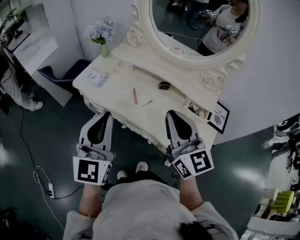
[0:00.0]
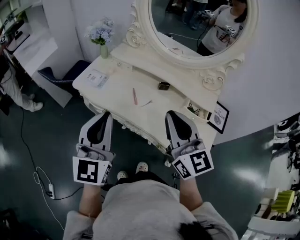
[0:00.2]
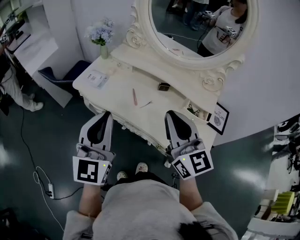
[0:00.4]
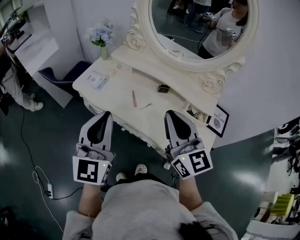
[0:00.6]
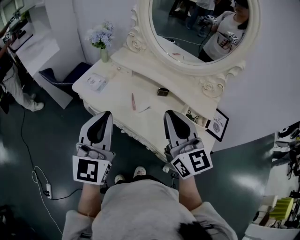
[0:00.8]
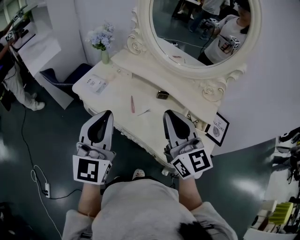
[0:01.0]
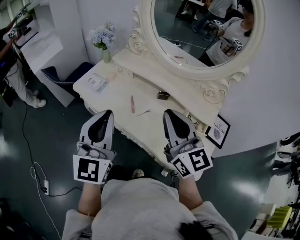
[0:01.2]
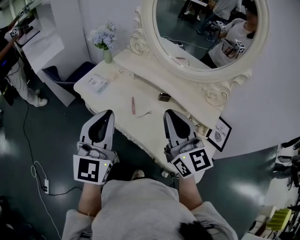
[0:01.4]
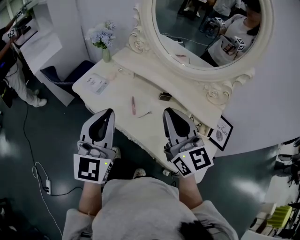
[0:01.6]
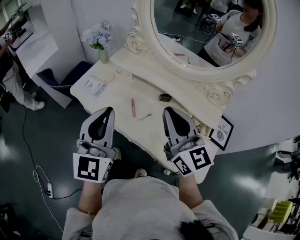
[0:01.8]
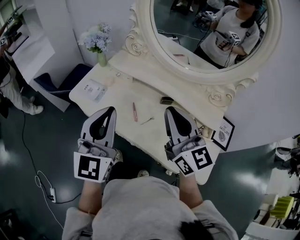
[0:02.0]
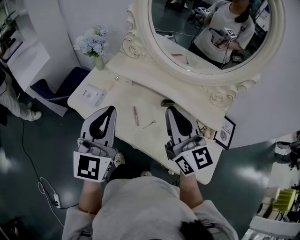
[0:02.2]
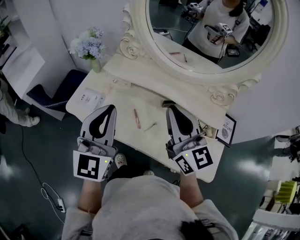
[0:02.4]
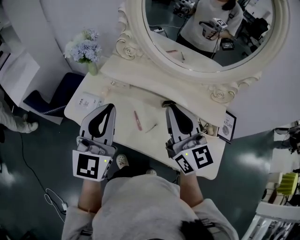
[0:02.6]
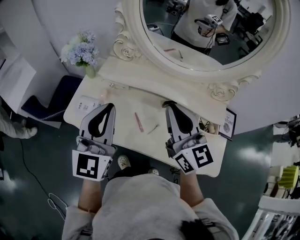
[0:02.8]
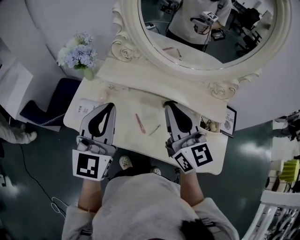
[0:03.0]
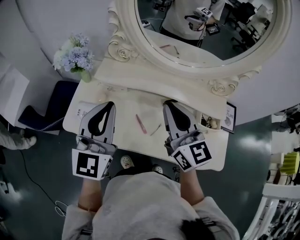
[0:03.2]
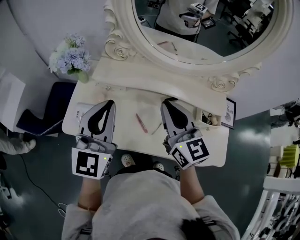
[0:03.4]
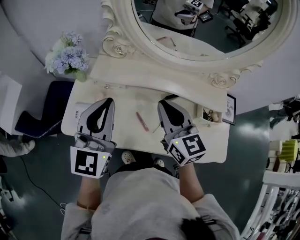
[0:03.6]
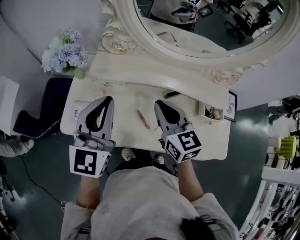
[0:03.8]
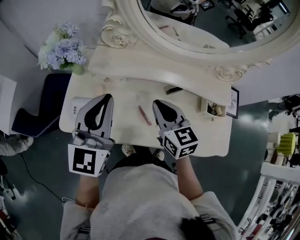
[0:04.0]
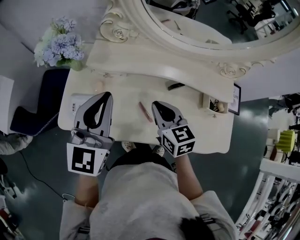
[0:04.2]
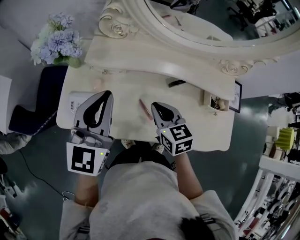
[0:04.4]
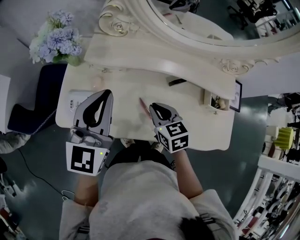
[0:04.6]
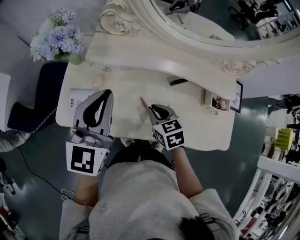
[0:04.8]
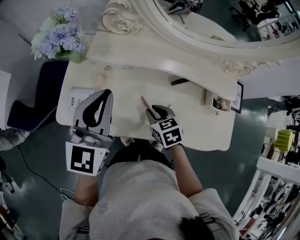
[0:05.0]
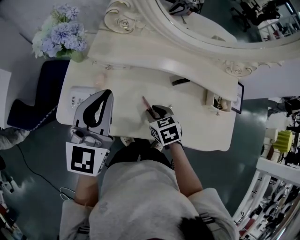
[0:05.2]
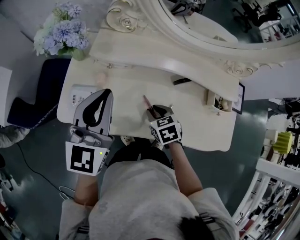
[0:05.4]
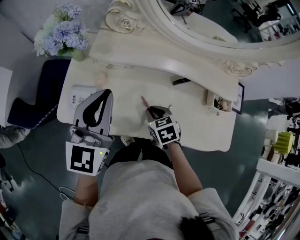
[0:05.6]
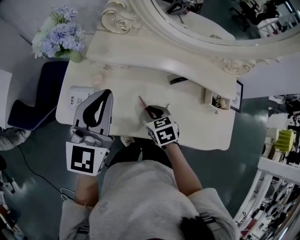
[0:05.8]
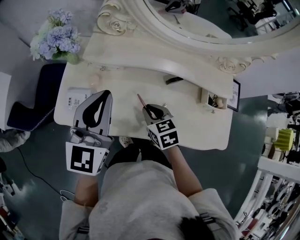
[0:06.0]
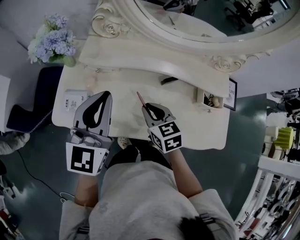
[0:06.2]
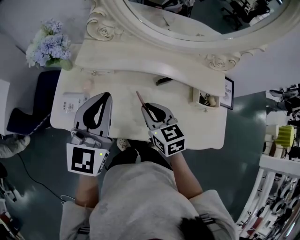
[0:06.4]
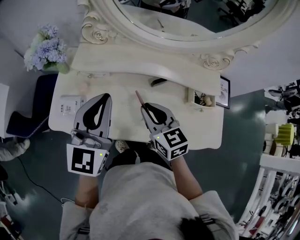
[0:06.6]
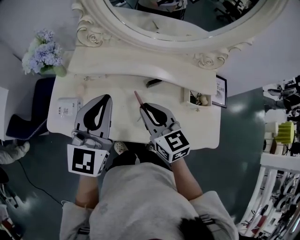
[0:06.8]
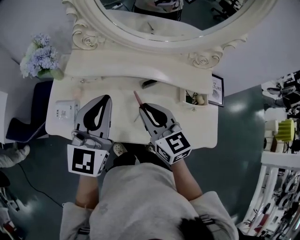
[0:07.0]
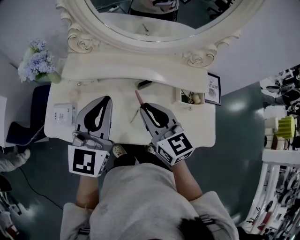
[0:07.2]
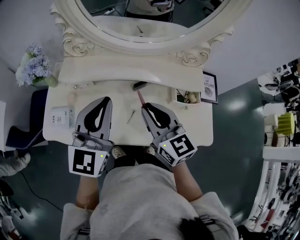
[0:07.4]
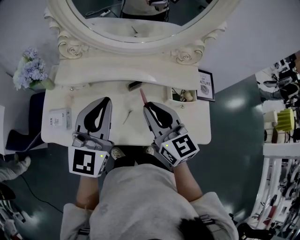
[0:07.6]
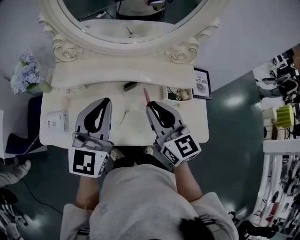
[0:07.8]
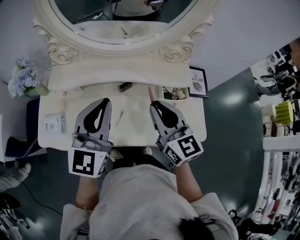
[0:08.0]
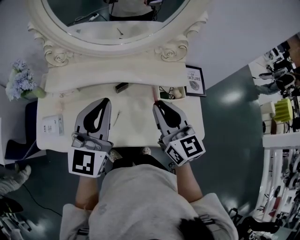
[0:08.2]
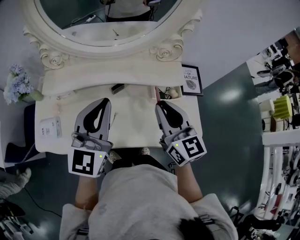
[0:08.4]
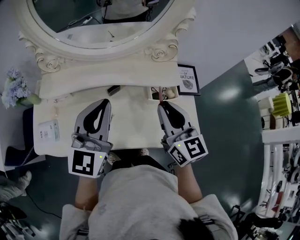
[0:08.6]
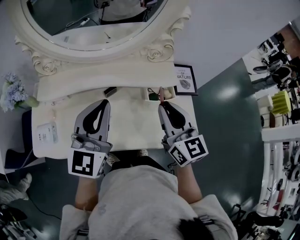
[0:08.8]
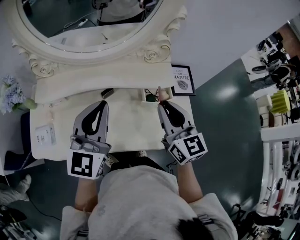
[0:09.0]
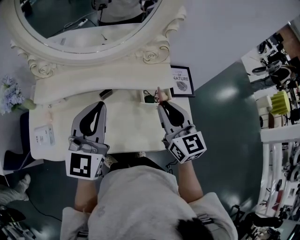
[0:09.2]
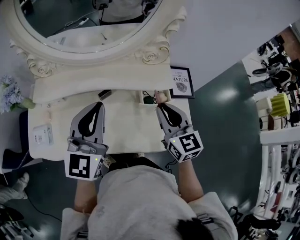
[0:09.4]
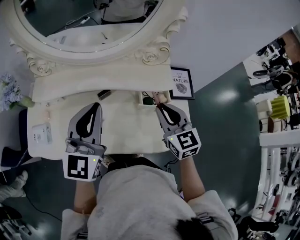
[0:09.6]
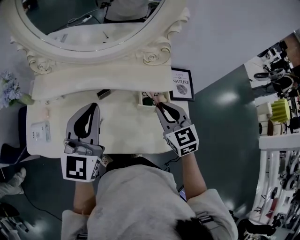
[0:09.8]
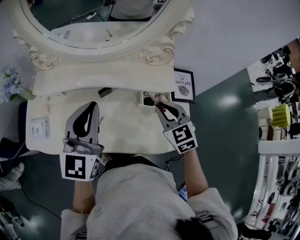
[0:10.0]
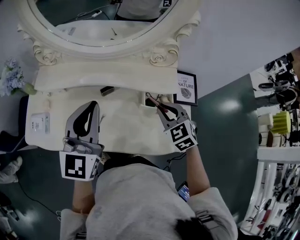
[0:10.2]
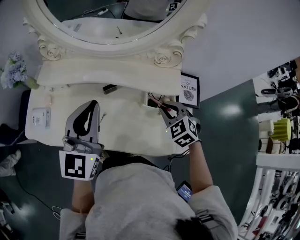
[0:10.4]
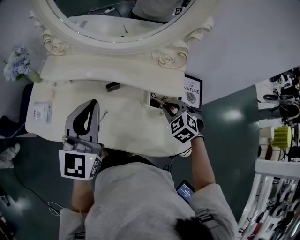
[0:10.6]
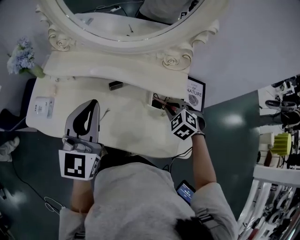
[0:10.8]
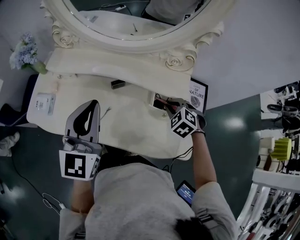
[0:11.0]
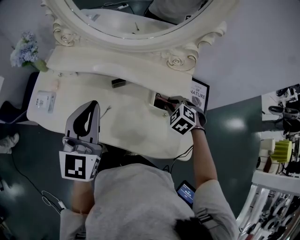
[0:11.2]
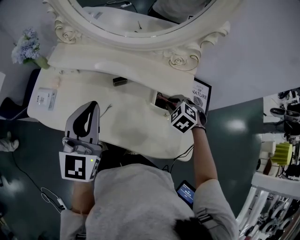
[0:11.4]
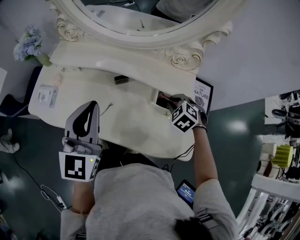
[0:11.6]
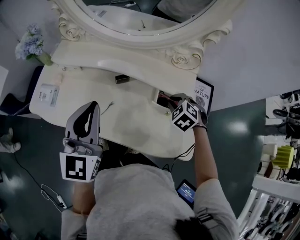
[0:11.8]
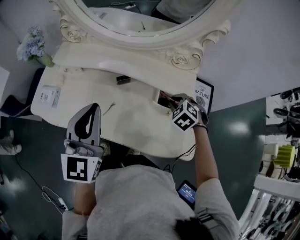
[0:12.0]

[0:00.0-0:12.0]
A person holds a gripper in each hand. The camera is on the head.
0:00.0 to 0:01.6: The two grippers go some 5 cm forward.
0:01.6 to 0:03.0: The left gripper travels forward by some 15 cm, and turns by some 20 degrees. Meanwhile the right gripper goes roughly 15 cm forward and to the left.
0:03.0 to 0:04.4: The right gripper shifts about 20 cm downward, and tilts its fingers roughly 40 degrees downward, while the left gripper goes about 10 cm downward and forward.
0:04.4 to 0:06.0: The right gripper is displaced downward by approximately 5 cm.
0:06.0 to 0:07.6: The left gripper shifts approximately 15 cm to the right, while the right gripper shifts roughly 25 cm upward and to the right, and tilts its fingers some 40 degrees upward.
0:07.6 to 0:09.0: The left gripper heads to the right, covering roughly 10 cm. Meanwhile the right gripper moves to the right, approximately 15 cm.
0:09.0 to 0:10.4: The right gripper heads downward and forward, covering roughly 15 cm, and tips its fingers downward by about 40 degrees.
0:10.4 to 0:12.0: The right gripper is displaced downward by approximately 5 cm, while the left gripper changes place by some 5 cm.

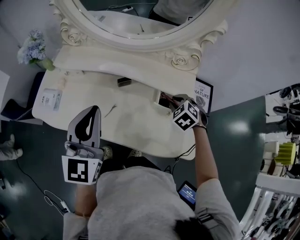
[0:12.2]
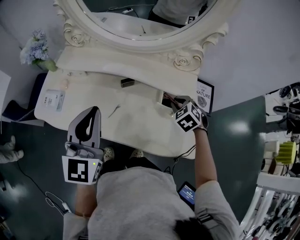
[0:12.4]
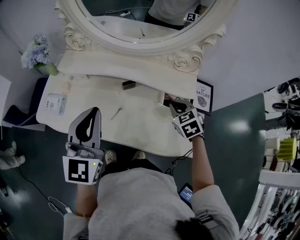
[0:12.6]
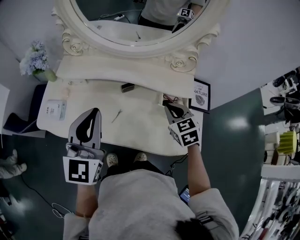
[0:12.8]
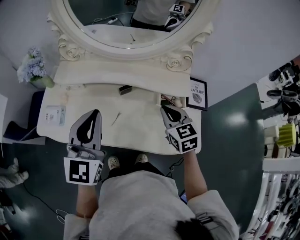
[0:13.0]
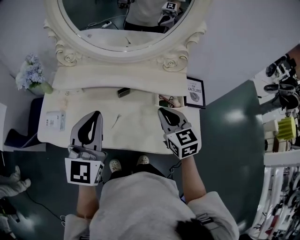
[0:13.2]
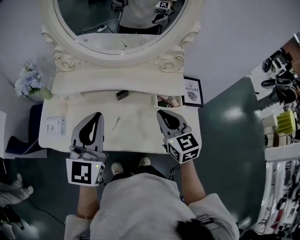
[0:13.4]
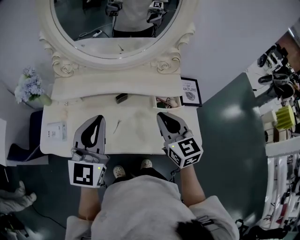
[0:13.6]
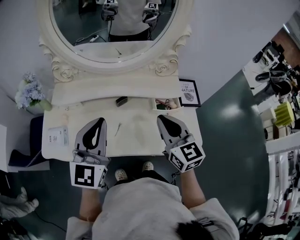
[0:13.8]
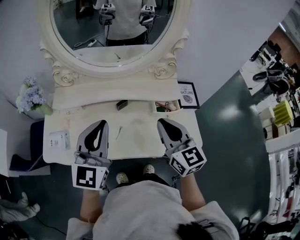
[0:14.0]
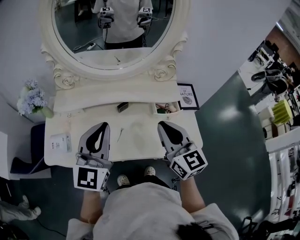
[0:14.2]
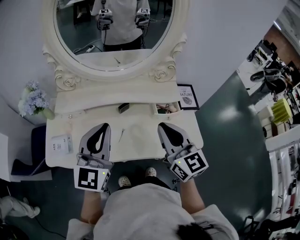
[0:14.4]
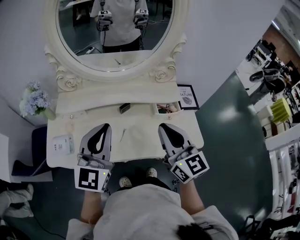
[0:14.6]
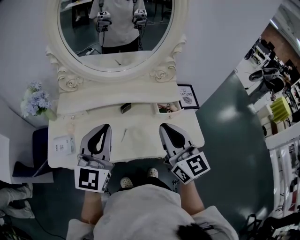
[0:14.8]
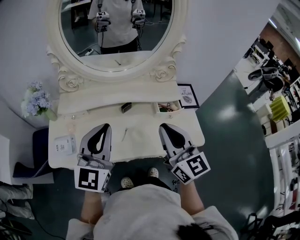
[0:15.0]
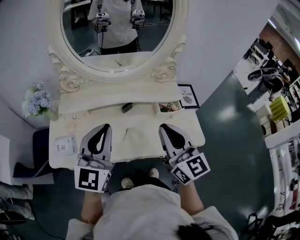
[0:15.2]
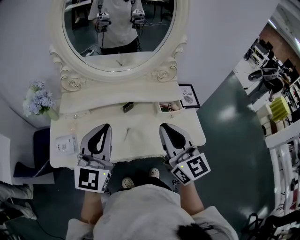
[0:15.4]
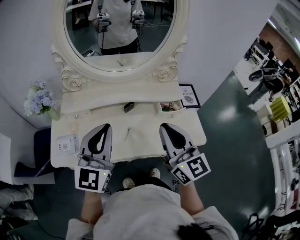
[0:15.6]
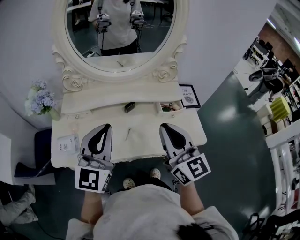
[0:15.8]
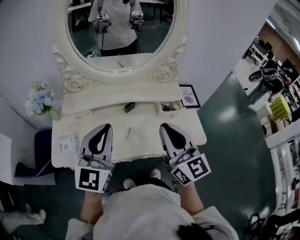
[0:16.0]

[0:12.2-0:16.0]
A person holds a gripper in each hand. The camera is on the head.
0:12.2 to 0:13.4: The right gripper travels upward, to the left and backward by roughly 20 cm, and tilts its fingers some 40 degrees upward.
0:13.4 to 0:14.8: The right gripper is displaced upward and backward by about 15 cm, and swivels some 20 degrees.
0:14.8 to 0:16.0: The grippers make only small movements.

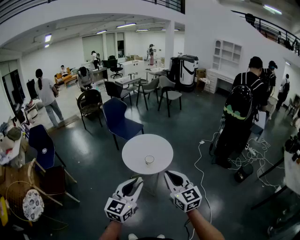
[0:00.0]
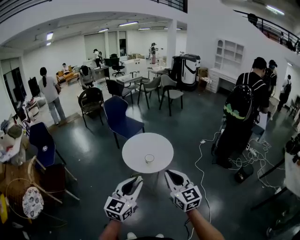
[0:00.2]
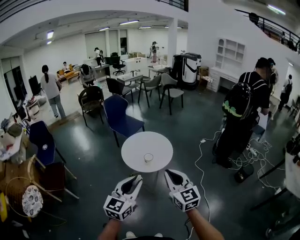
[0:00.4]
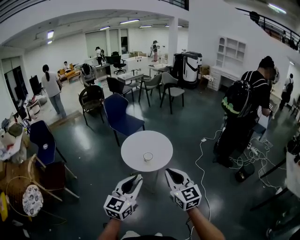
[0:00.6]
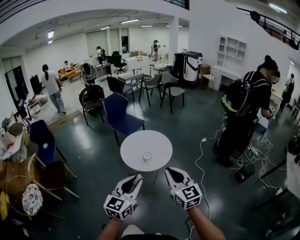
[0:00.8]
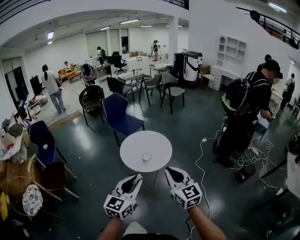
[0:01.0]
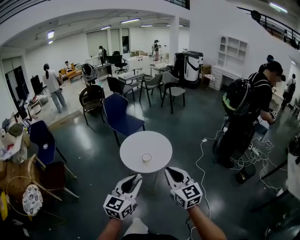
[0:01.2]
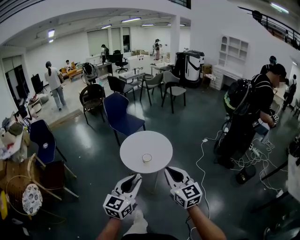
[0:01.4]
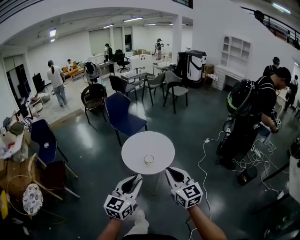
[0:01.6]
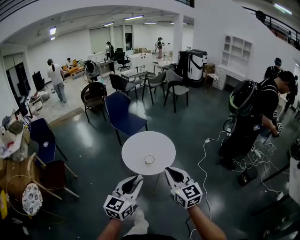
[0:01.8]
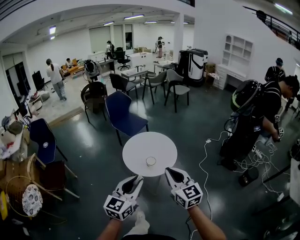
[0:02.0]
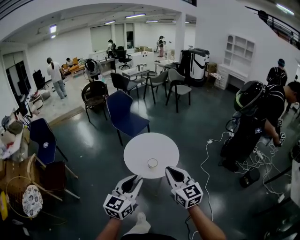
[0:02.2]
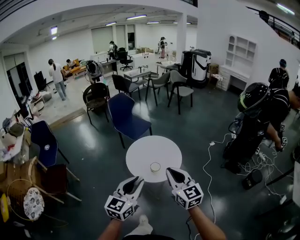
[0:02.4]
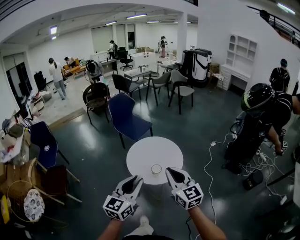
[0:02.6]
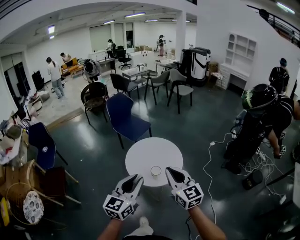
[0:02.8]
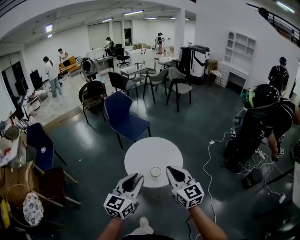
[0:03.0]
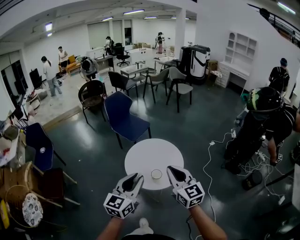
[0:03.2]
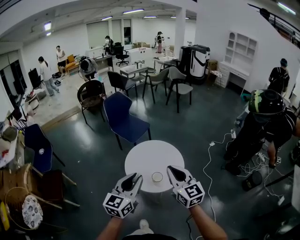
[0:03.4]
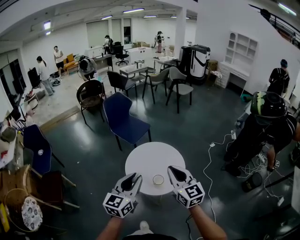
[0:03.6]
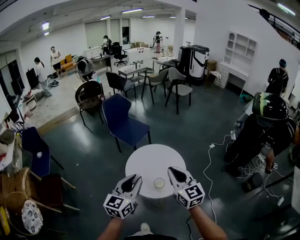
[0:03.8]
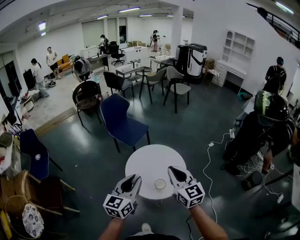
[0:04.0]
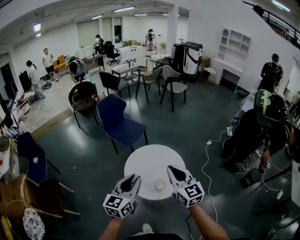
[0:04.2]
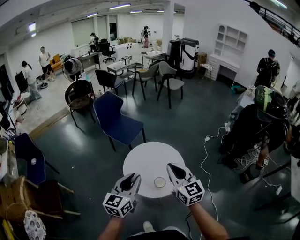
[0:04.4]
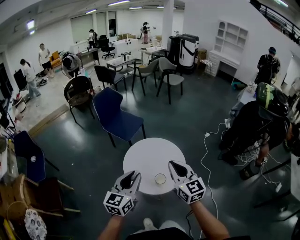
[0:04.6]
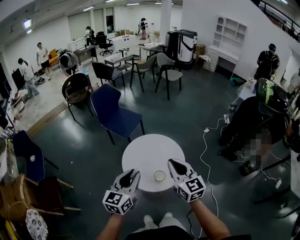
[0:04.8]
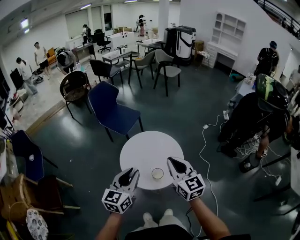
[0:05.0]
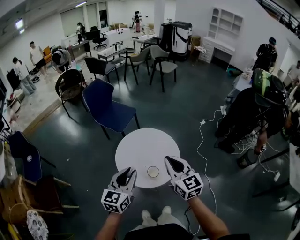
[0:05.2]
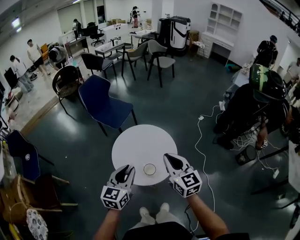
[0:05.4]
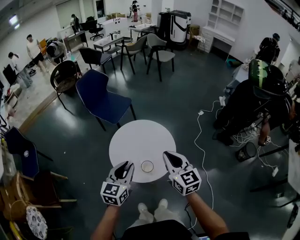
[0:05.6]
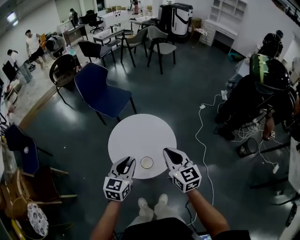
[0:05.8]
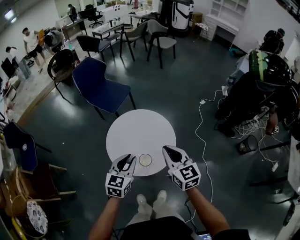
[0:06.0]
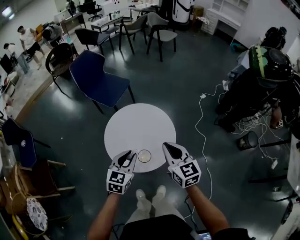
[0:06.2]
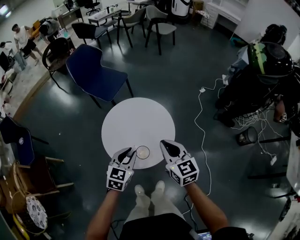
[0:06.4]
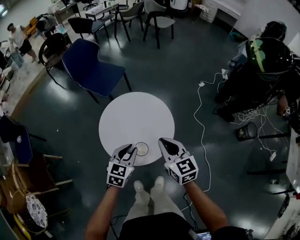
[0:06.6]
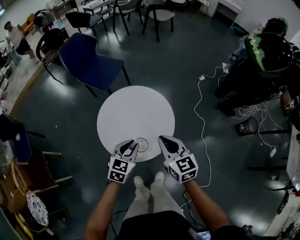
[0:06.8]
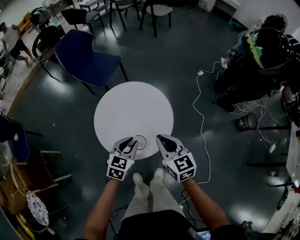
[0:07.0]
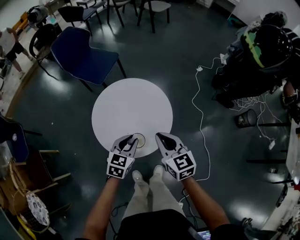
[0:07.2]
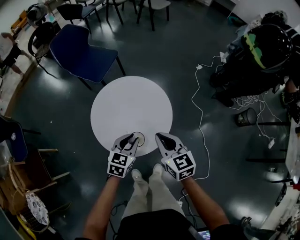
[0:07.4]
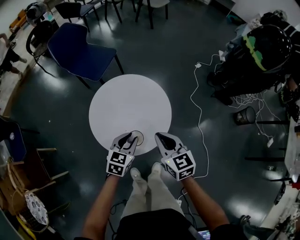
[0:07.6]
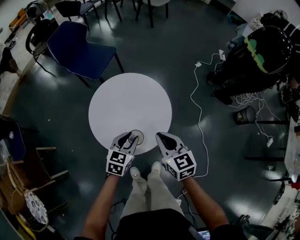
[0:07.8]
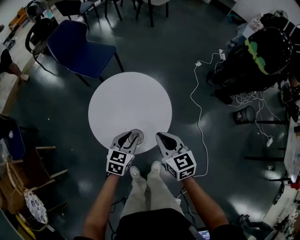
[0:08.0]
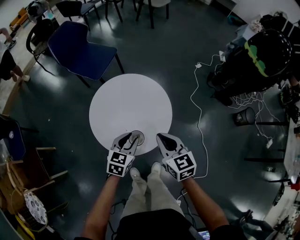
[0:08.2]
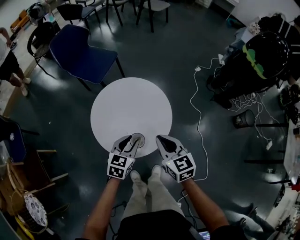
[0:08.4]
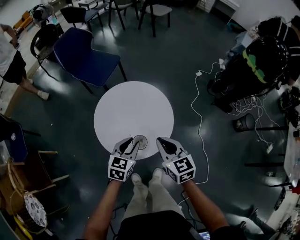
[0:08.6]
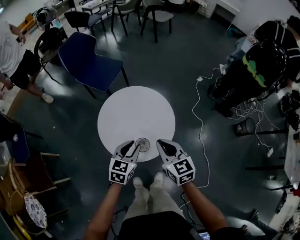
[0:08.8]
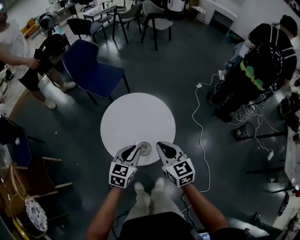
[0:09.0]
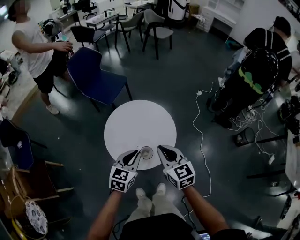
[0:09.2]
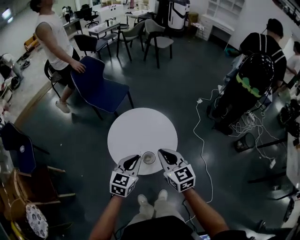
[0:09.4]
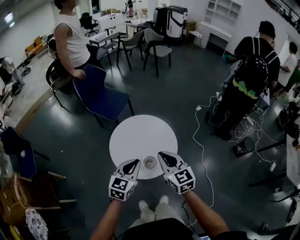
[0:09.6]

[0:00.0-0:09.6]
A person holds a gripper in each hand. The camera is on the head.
0:00.0 to 0:01.6: The right gripper heads forward and to the right, covering some 10 cm. Meanwhile the left gripper moves forward, approximately 5 cm.
0:01.6 to 0:03.2: The grippers both shift forward by some 25 cm.
0:03.2 to 0:04.8: The right gripper is displaced forward by some 15 cm; the left gripper shifts some 20 cm forward and to the left.
0:04.8 to 0:06.4: The grippers both shift downward, to the right and forward by roughly 25 cm. The left gripper turns by about 30 degrees.
0:06.4 to 0:08.0: The grippers both shift downward by roughly 15 cm.
0:08.0 to 0:09.6: The right gripper is displaced upward, to the left and backward by some 20 cm, while the left gripper is displaced upward and backward by some 25 cm, and closes its fingers.
